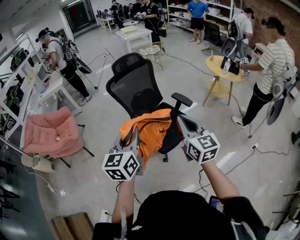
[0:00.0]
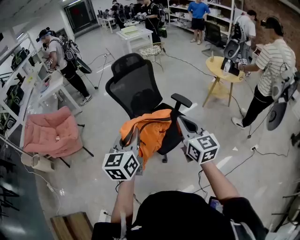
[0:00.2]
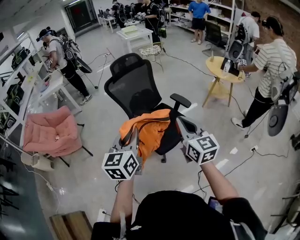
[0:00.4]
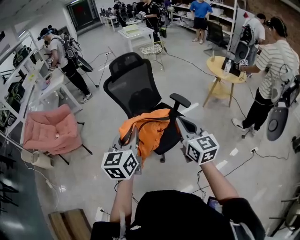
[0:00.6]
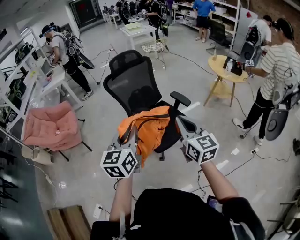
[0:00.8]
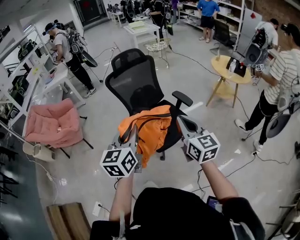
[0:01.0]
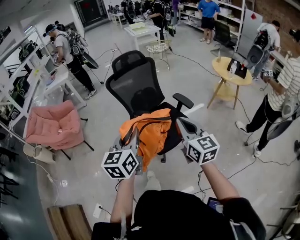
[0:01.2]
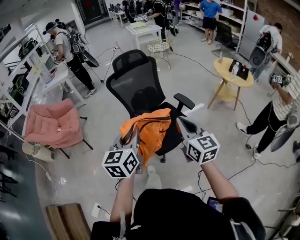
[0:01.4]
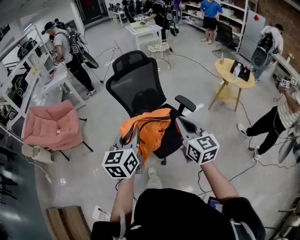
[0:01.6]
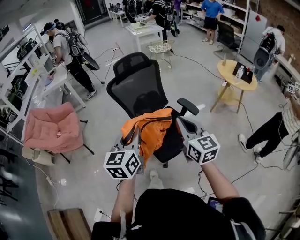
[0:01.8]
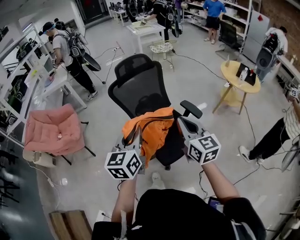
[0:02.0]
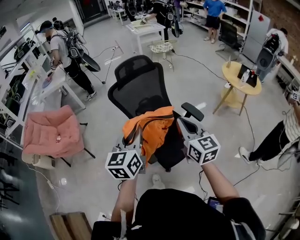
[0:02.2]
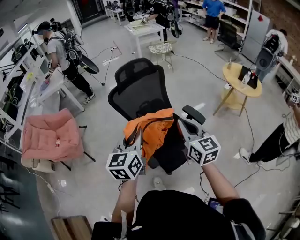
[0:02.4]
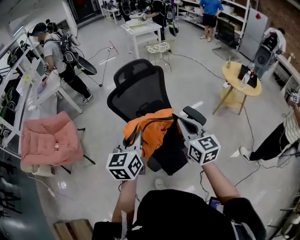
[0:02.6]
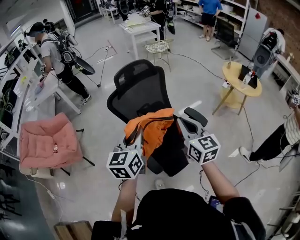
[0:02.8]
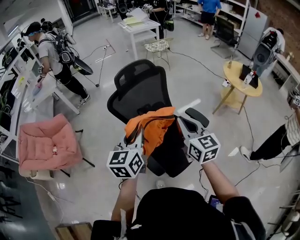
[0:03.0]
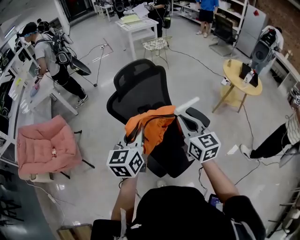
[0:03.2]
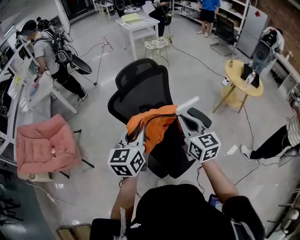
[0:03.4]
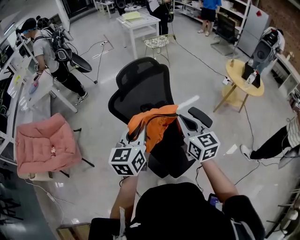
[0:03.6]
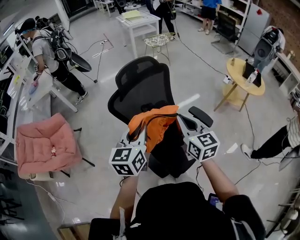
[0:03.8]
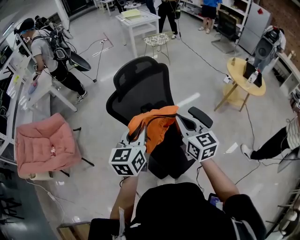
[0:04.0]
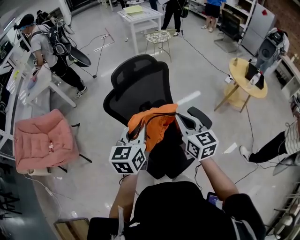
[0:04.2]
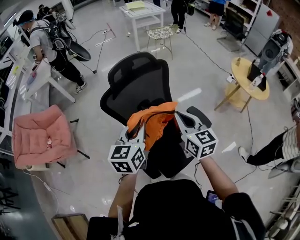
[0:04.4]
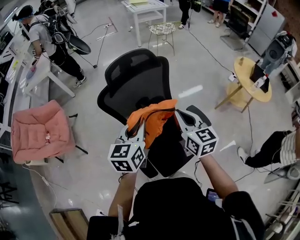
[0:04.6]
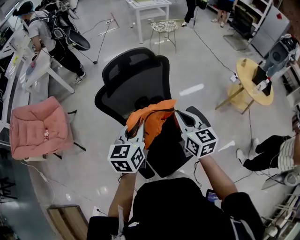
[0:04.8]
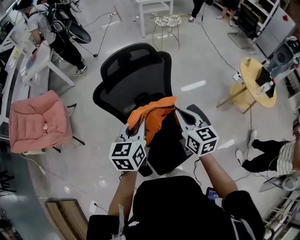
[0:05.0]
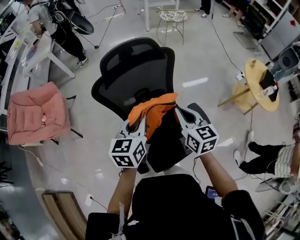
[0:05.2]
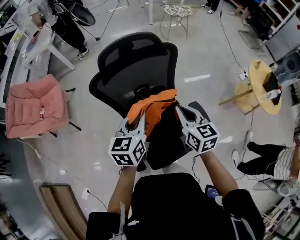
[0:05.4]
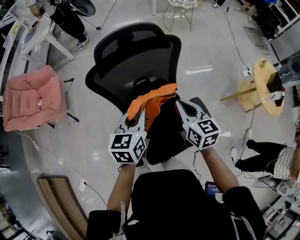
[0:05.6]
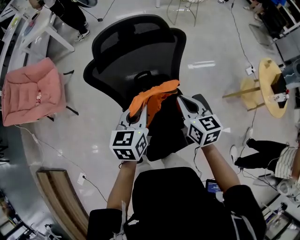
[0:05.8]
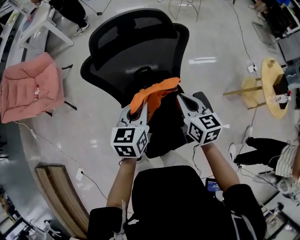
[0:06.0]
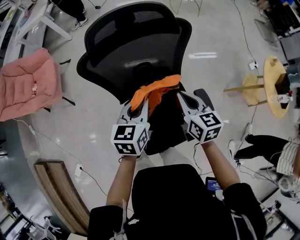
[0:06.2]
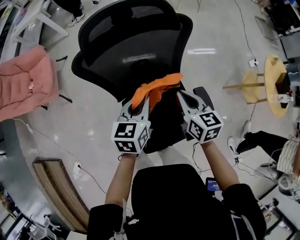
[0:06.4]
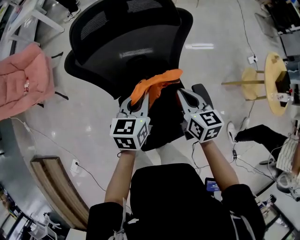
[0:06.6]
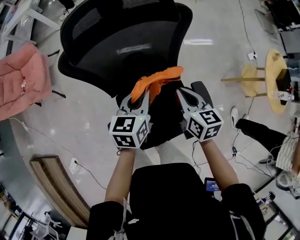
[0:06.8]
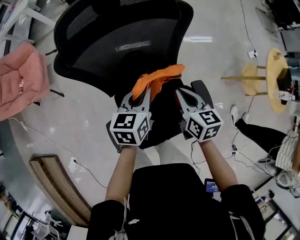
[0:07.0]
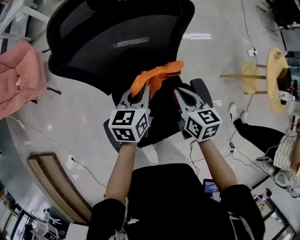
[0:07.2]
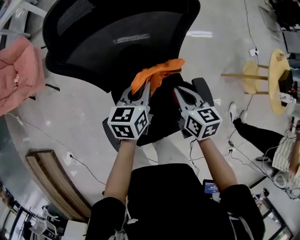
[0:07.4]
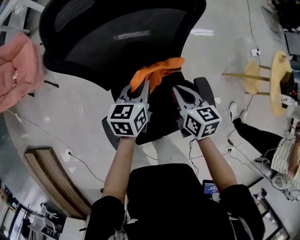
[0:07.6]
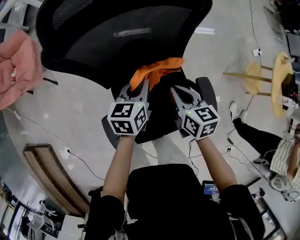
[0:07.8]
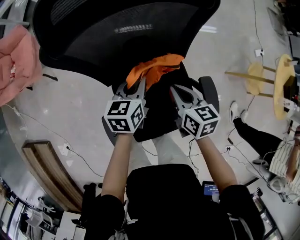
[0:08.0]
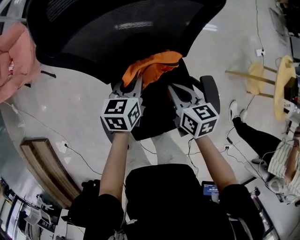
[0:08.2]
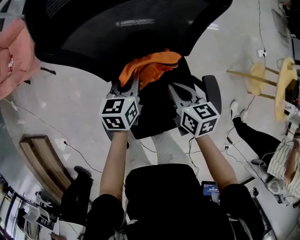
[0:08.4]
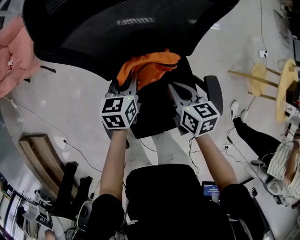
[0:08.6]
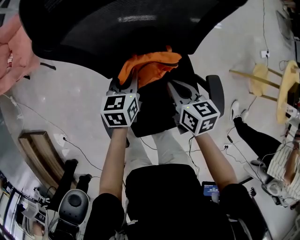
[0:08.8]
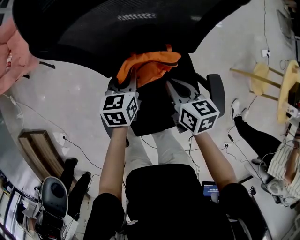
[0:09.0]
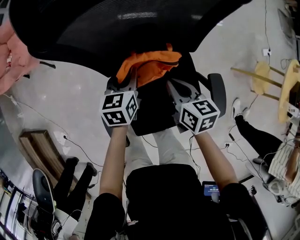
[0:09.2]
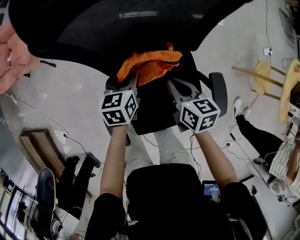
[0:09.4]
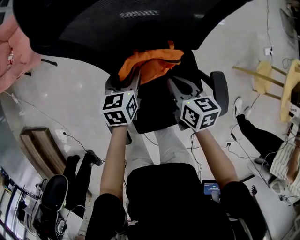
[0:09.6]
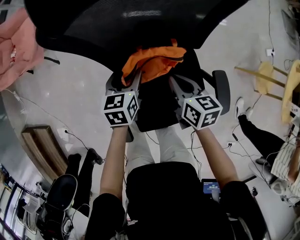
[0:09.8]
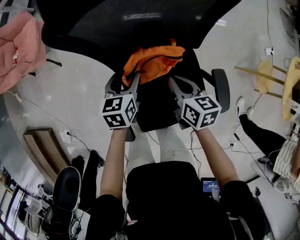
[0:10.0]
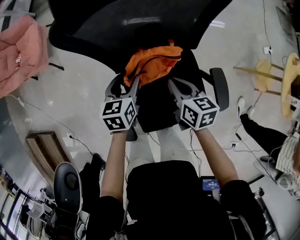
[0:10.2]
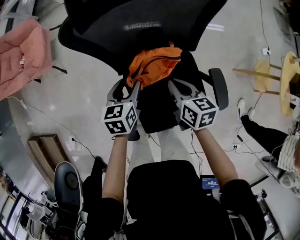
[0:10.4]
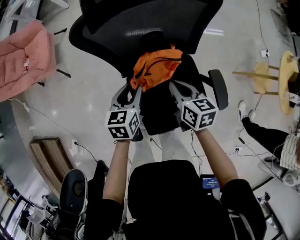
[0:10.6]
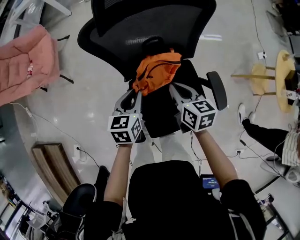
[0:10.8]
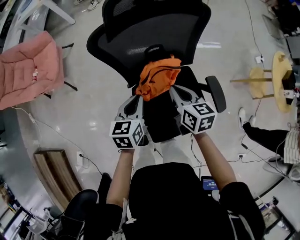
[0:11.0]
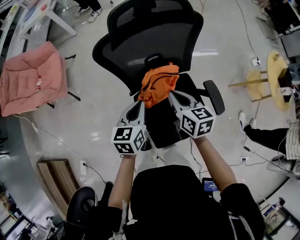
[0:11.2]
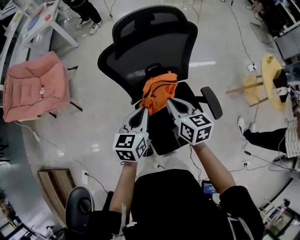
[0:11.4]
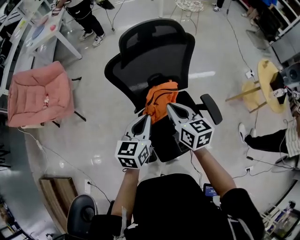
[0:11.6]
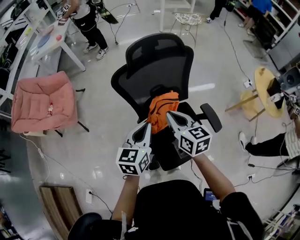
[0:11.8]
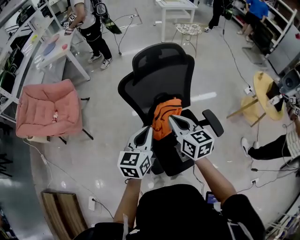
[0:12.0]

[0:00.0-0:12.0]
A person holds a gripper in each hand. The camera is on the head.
0:00.0 to 0:01.6: Both grippers move forward, roughly 5 cm.
0:01.6 to 0:03.0: Both grippers travel together forward, about 25 cm.
0:03.0 to 0:04.4: The left gripper heads forward and downward, covering roughly 10 cm. Meanwhile the right gripper shifts about 10 cm forward.
0:04.4 to 0:06.0: The two grippers go about 20 cm downward and forward. The right gripper swivels about 20 degrees.
0:06.0 to 0:07.6: The right gripper heads downward, covering about 15 cm. Meanwhile the left gripper heads downward and forward, covering about 20 cm.
0:07.6 to 0:09.0: The right gripper goes about 10 cm to the left and downward, while the left gripper moves downward and to the left, about 15 cm.
0:09.0 to 0:10.4: The left gripper goes about 10 cm backward, upward and to the left, and opens; the right gripper ends up about 5 cm from where it was.
0:10.4 to 0:12.0: The right gripper moves upward, about 30 cm, and rotates approximately 30 degrees. Meanwhile the left gripper shifts some 35 cm upward and backward, changes its angle by about 30 degrees, and closes.

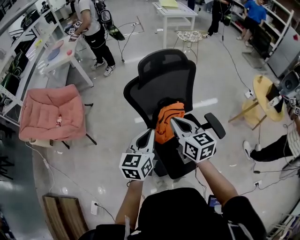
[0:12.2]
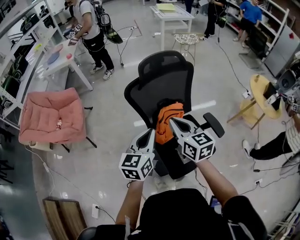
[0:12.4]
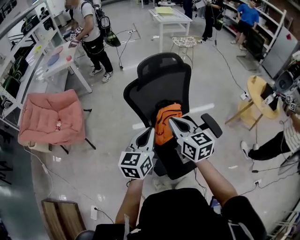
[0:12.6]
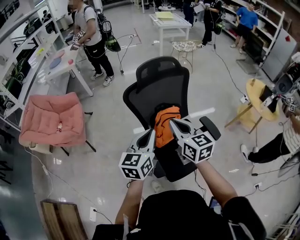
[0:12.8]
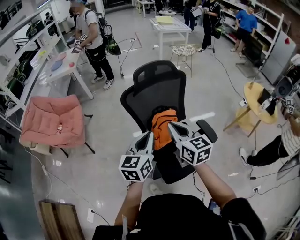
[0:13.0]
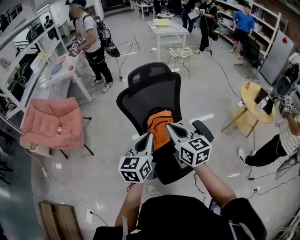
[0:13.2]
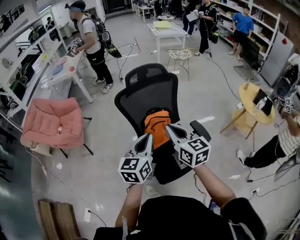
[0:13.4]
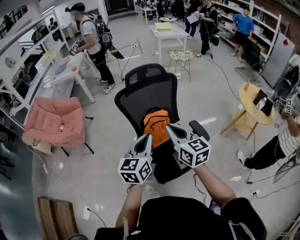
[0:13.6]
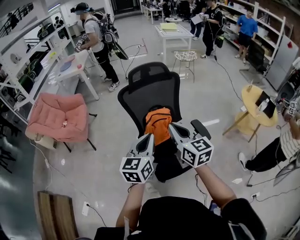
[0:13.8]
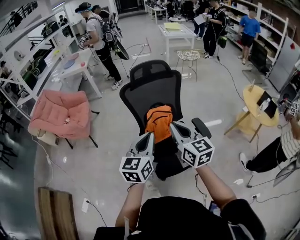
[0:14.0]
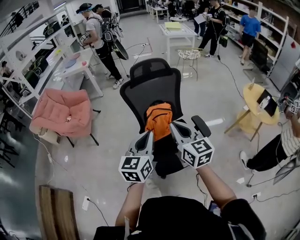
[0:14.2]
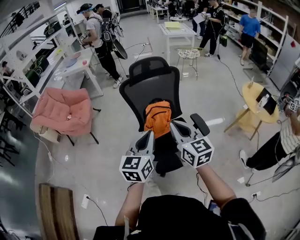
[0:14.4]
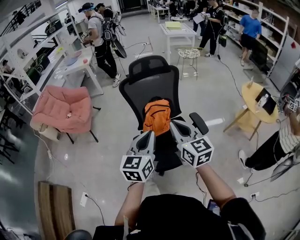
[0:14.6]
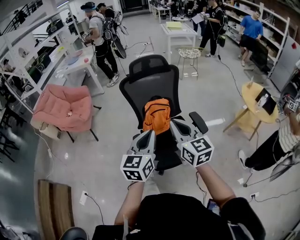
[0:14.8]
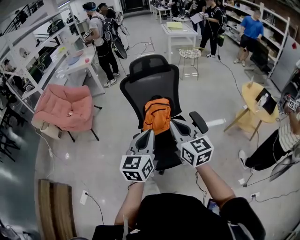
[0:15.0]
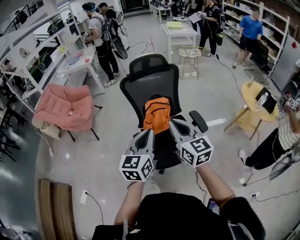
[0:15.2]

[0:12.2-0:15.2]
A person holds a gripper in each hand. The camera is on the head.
0:12.2 to 0:13.8: Both grippers travel together backward, to the right and upward, roughly 20 cm.
0:13.8 to 0:15.2: Both grippers move backward, about 10 cm.

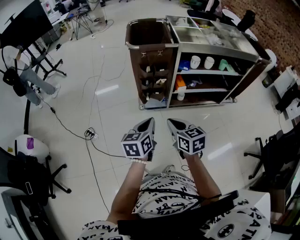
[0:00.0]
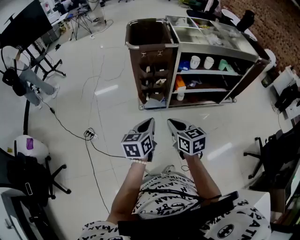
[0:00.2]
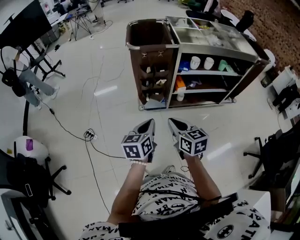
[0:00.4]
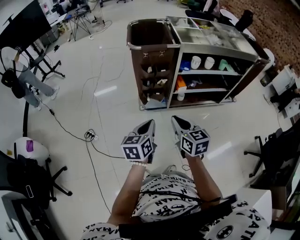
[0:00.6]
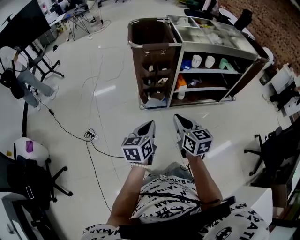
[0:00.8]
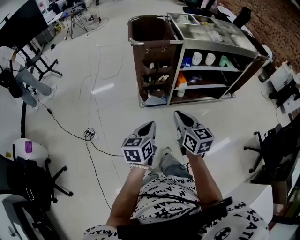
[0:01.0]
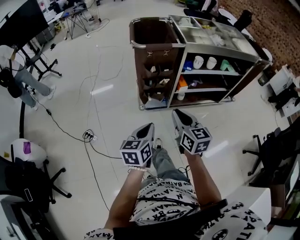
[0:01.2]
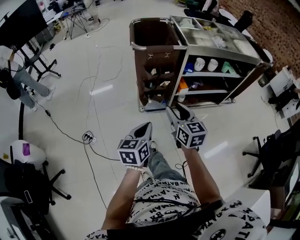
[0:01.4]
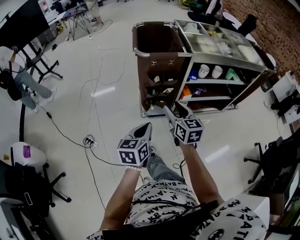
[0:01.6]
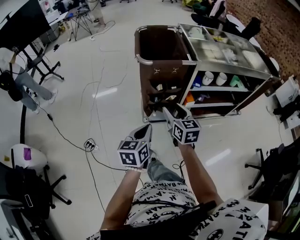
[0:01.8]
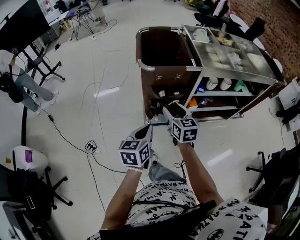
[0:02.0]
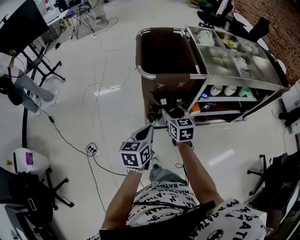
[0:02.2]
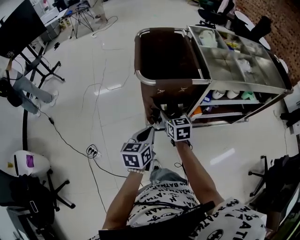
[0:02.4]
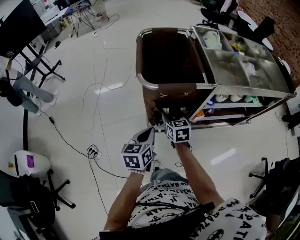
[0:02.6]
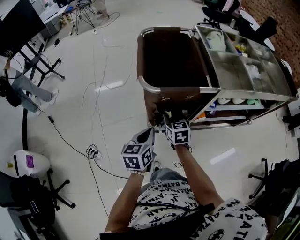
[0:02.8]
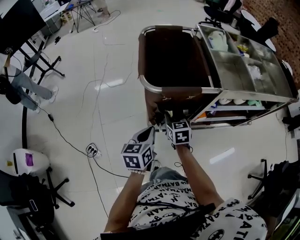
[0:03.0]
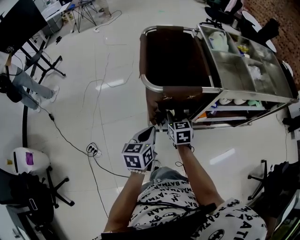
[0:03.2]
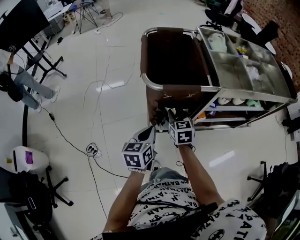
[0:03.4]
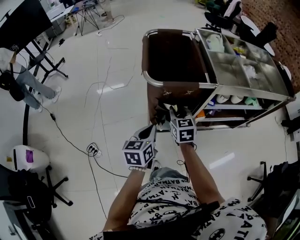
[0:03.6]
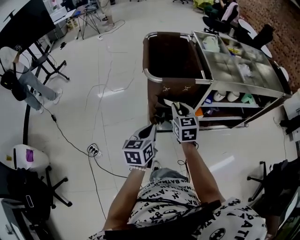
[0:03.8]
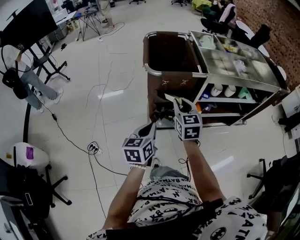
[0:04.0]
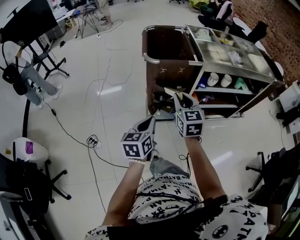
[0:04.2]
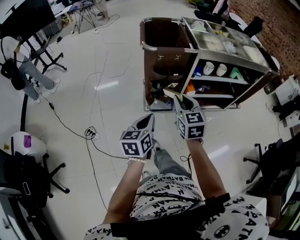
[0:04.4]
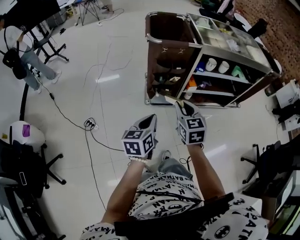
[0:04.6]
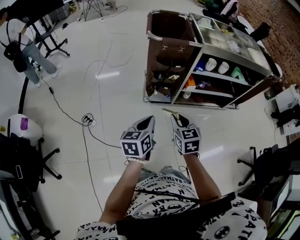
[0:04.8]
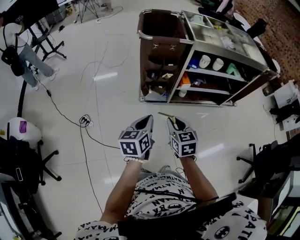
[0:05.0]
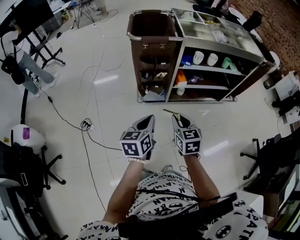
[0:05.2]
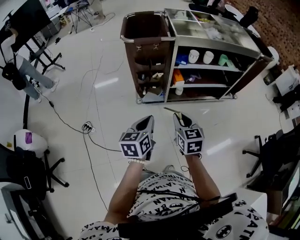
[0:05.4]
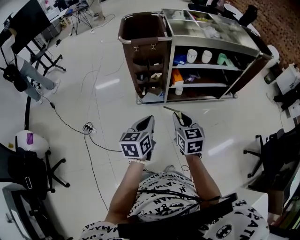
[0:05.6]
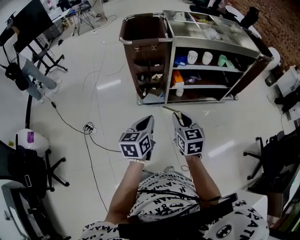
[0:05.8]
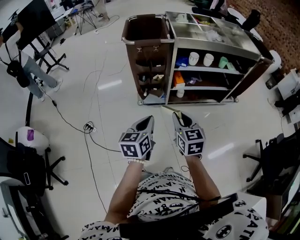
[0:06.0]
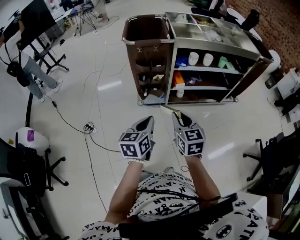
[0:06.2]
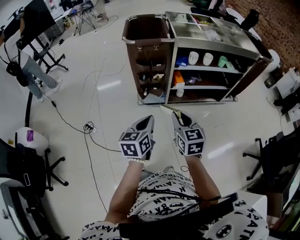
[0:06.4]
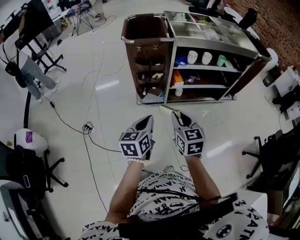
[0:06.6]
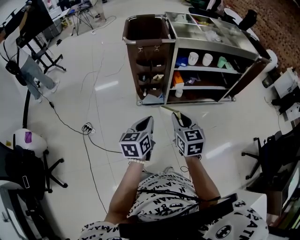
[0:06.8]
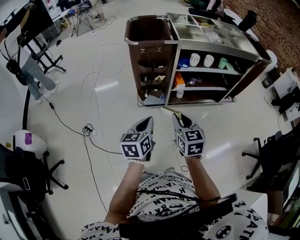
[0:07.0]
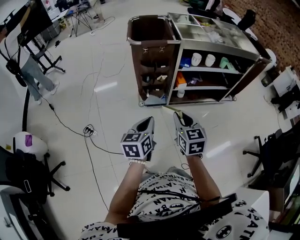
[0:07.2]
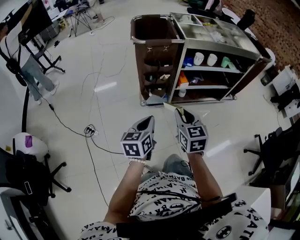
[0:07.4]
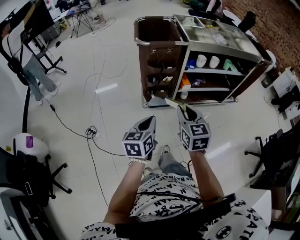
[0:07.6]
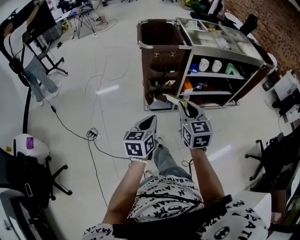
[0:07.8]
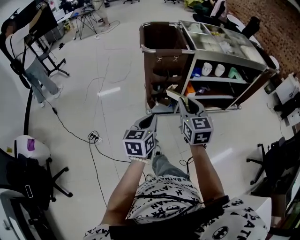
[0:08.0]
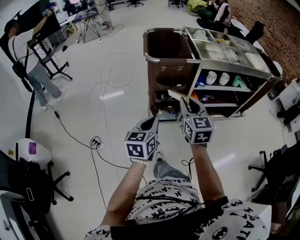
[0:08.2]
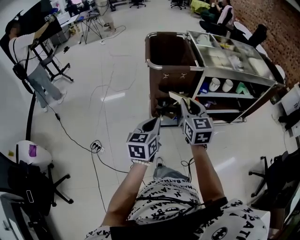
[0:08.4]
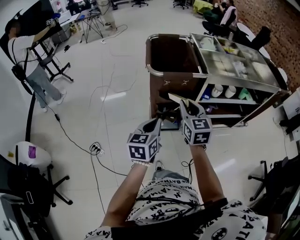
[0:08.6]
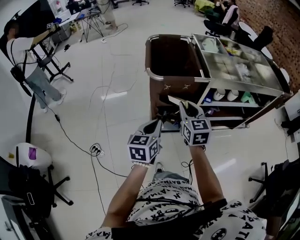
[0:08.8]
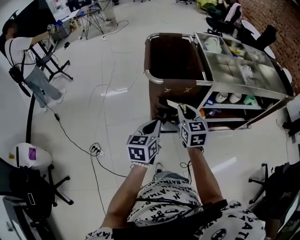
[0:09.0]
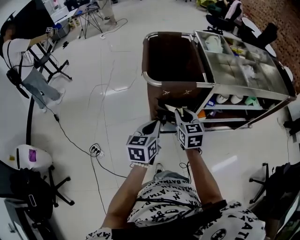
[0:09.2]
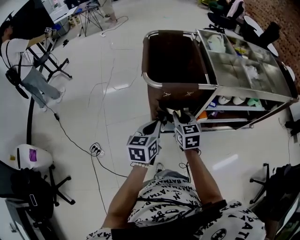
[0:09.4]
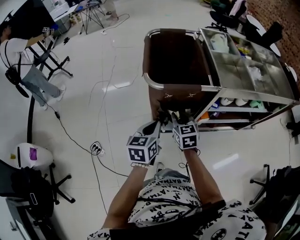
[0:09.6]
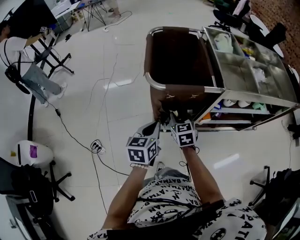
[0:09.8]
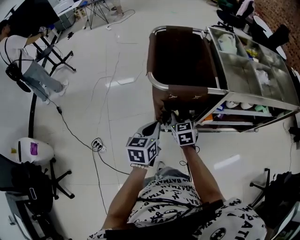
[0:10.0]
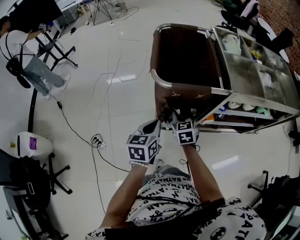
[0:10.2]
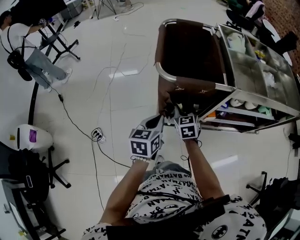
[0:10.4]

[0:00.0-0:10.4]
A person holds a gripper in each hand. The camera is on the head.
0:00.0 to 0:01.4: The left gripper moves to the left, approximately 5 cm. Meanwhile the right gripper moves forward, roughly 10 cm, and opens its fingers.
0:01.4 to 0:03.0: The right gripper is displaced forward and downward by some 35 cm, and turns by about 20 degrees, while the left gripper shifts about 30 cm forward.
0:03.0 to 0:04.4: The left gripper moves backward, some 25 cm; the right gripper is displaced backward and upward by roughly 30 cm.
0:04.4 to 0:06.0: Both grippers move to the right and backward, approximately 15 cm.
0:06.0 to 0:07.4: Both grippers move to the left, approximately 10 cm.
0:07.4 to 0:09.0: Both grippers travel together forward, some 30 cm.
0:09.0 to 0:10.4: The right gripper goes about 15 cm downward and forward; the left gripper goes some 10 cm downward and forward.
